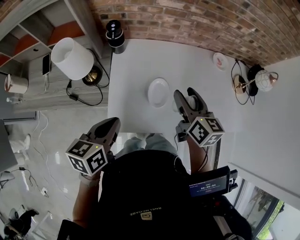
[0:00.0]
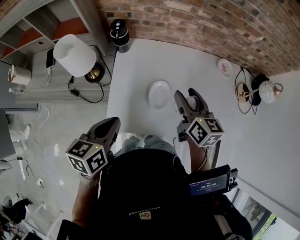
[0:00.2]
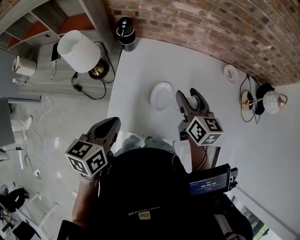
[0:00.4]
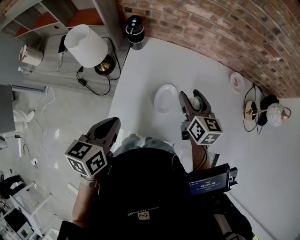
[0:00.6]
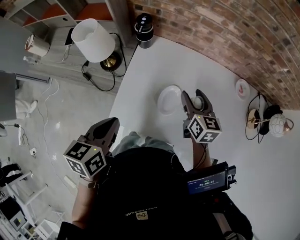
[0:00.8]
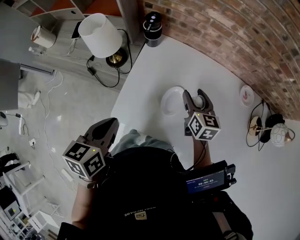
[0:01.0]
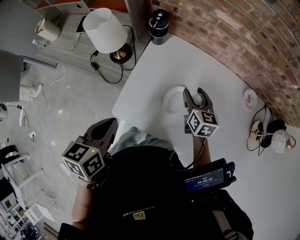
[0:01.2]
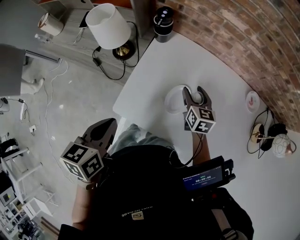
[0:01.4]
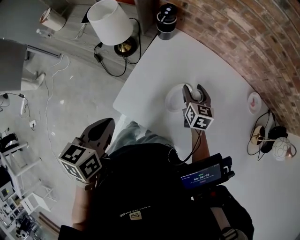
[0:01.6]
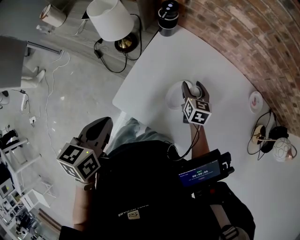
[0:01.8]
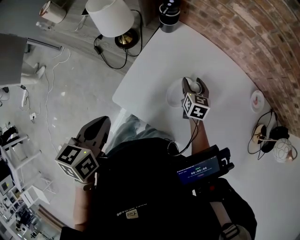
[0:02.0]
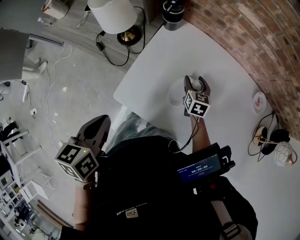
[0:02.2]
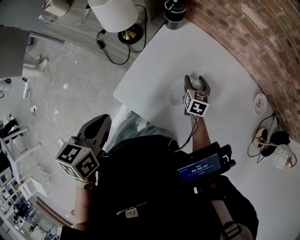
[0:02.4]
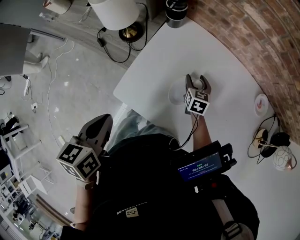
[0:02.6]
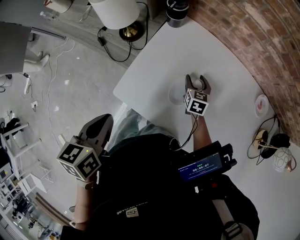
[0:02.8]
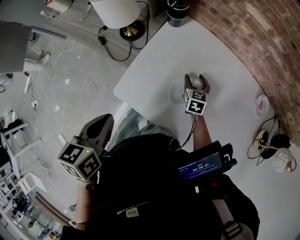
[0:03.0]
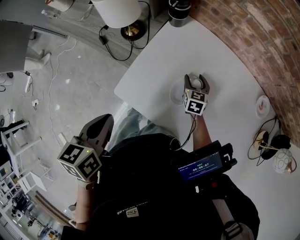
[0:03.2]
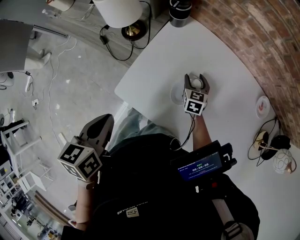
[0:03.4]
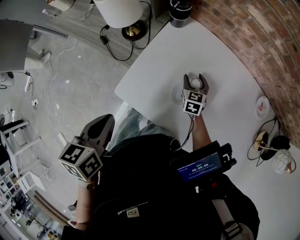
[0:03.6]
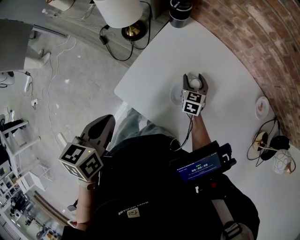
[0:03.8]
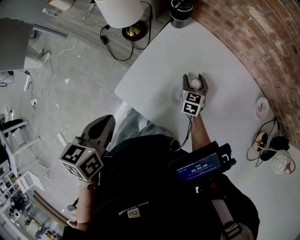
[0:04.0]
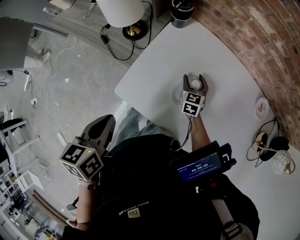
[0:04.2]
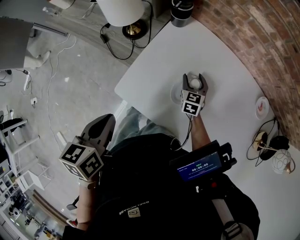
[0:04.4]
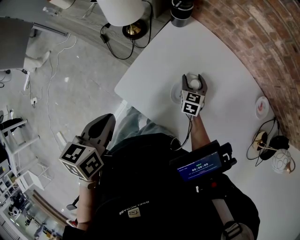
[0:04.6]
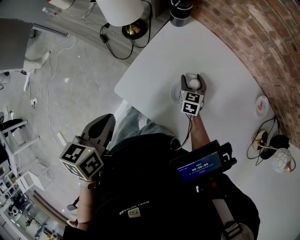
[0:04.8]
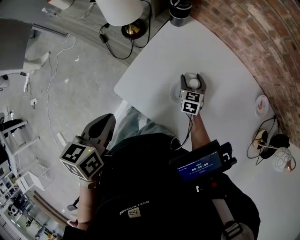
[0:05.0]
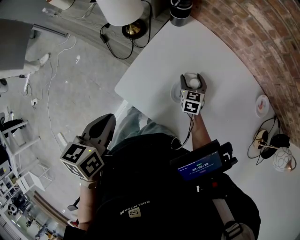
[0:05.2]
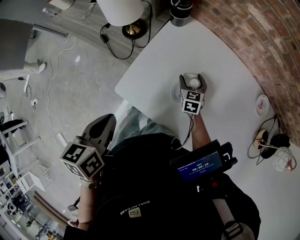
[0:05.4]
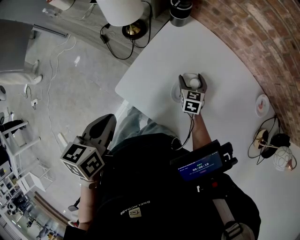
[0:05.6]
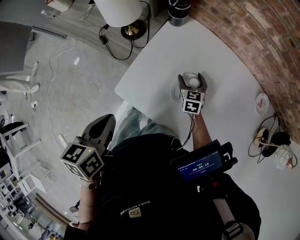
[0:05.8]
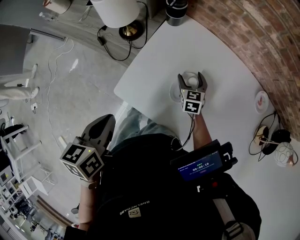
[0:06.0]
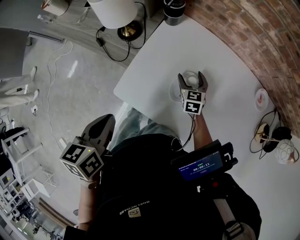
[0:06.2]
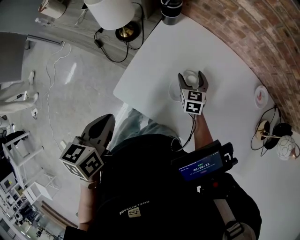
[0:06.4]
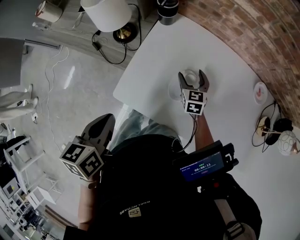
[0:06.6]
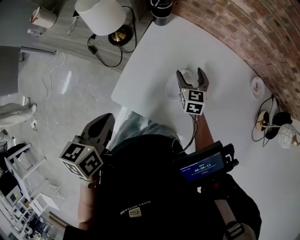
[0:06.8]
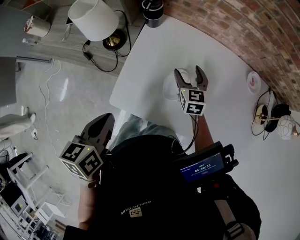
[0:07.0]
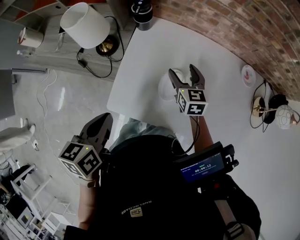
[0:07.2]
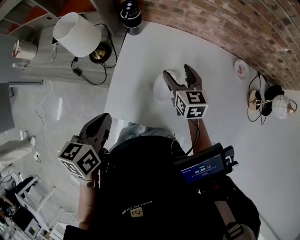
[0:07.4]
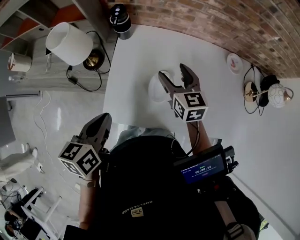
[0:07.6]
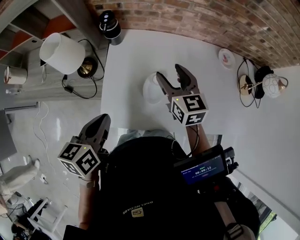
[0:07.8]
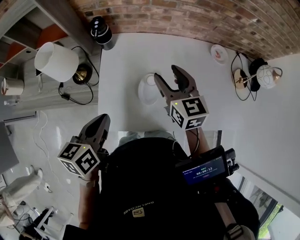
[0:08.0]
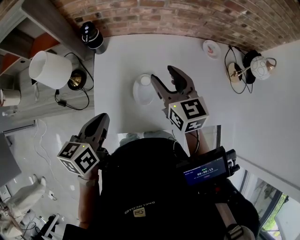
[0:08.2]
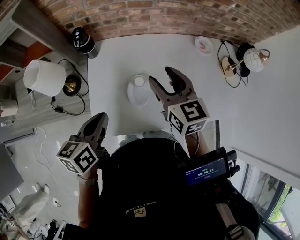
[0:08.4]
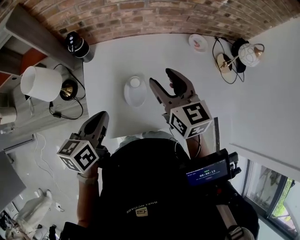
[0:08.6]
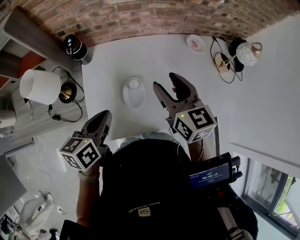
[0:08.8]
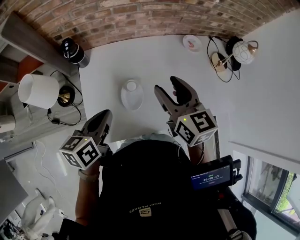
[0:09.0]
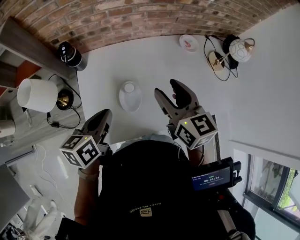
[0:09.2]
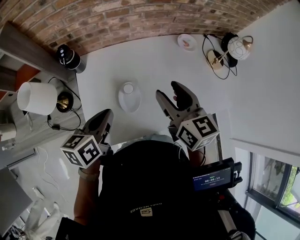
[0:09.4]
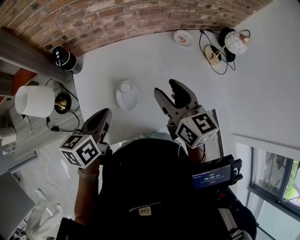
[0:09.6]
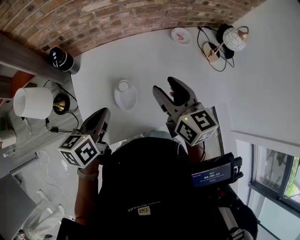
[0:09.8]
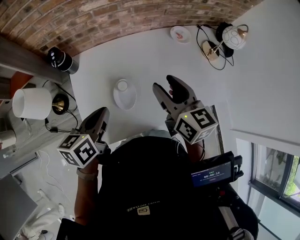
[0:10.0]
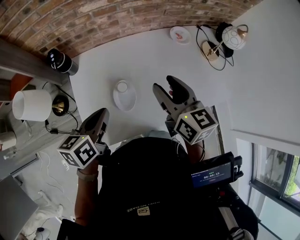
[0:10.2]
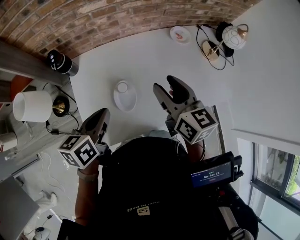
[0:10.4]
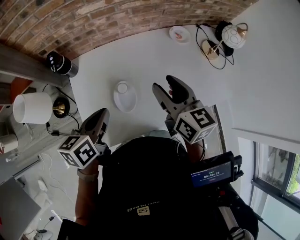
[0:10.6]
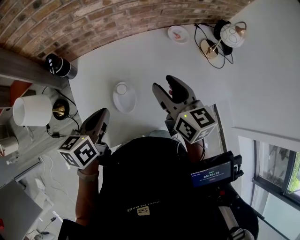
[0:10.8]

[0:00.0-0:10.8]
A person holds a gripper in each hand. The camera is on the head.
0:00.0 to 0:01.6: The right gripper shifts about 20 cm downward and forward, and turns by roughly 30 degrees, while the left gripper rotates roughly 30 degrees.
0:01.6 to 0:03.0: The right gripper heads downward, covering roughly 10 cm.
0:03.0 to 0:06.2: There are only small adjustments of the grippers.
0:06.2 to 0:07.8: The left gripper is displaced forward by roughly 10 cm, and turns by about 30 degrees. The right gripper is displaced upward by roughly 20 cm, and swivels some 20 degrees.
0:07.8 to 0:09.2: The right gripper goes approximately 15 cm to the right, upward and backward, while the left gripper shifts about 10 cm to the right and forward.
0:09.2 to 0:10.8: There are only small adjustments of the grippers.

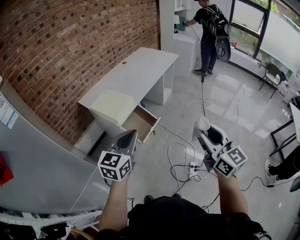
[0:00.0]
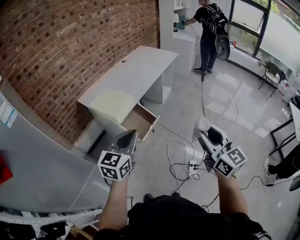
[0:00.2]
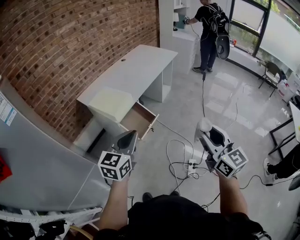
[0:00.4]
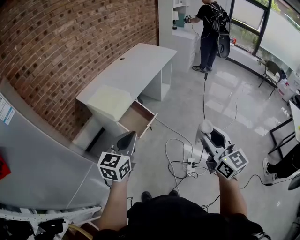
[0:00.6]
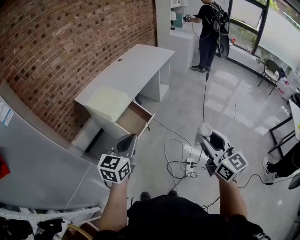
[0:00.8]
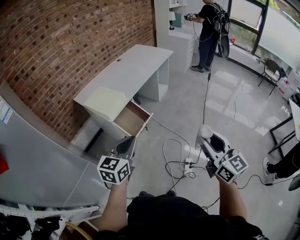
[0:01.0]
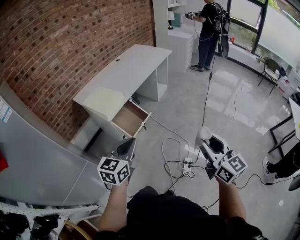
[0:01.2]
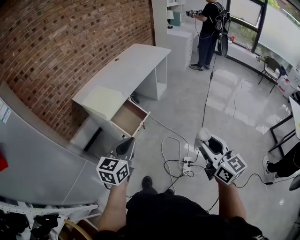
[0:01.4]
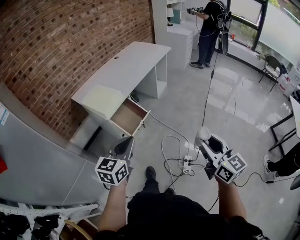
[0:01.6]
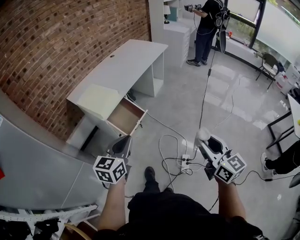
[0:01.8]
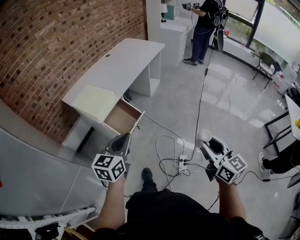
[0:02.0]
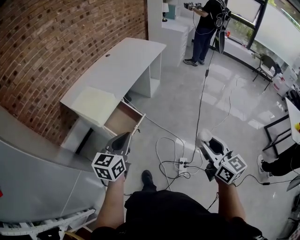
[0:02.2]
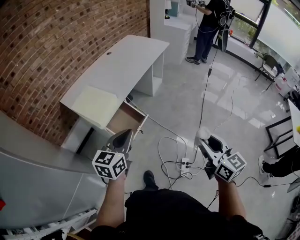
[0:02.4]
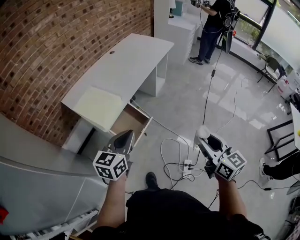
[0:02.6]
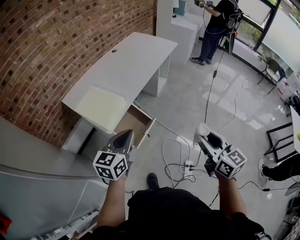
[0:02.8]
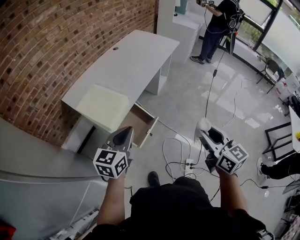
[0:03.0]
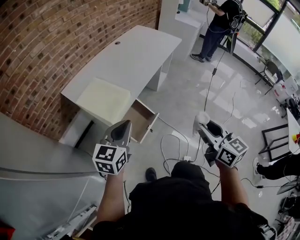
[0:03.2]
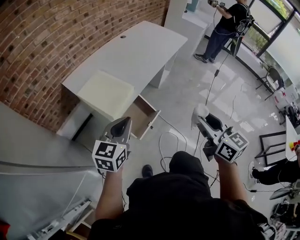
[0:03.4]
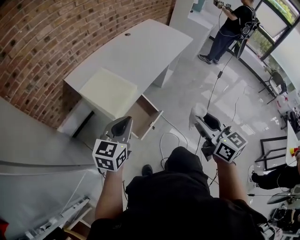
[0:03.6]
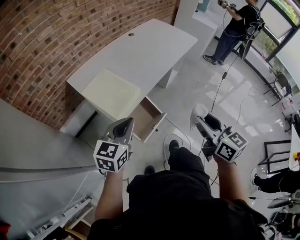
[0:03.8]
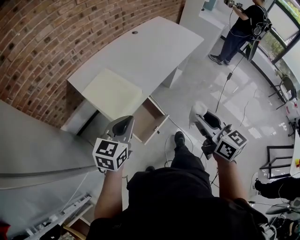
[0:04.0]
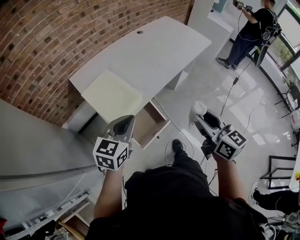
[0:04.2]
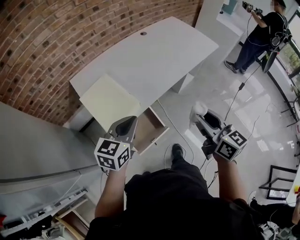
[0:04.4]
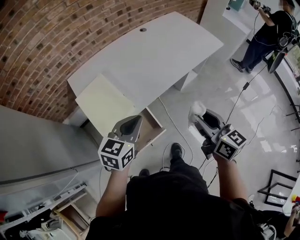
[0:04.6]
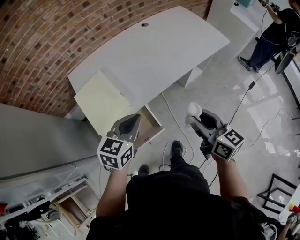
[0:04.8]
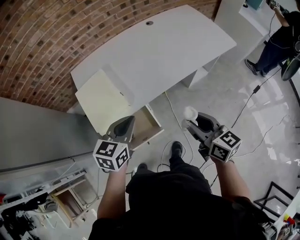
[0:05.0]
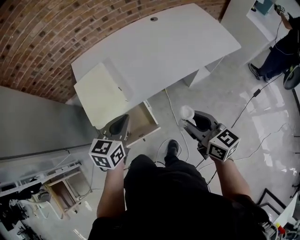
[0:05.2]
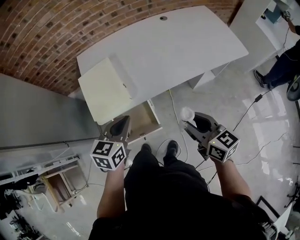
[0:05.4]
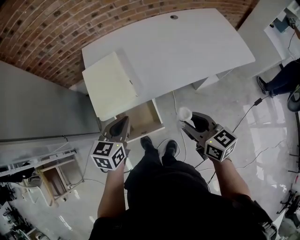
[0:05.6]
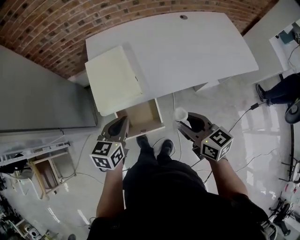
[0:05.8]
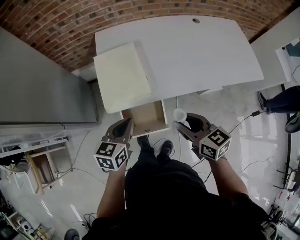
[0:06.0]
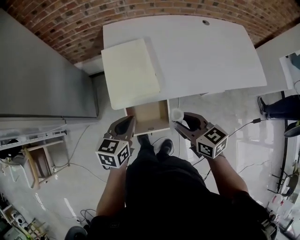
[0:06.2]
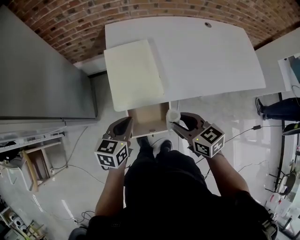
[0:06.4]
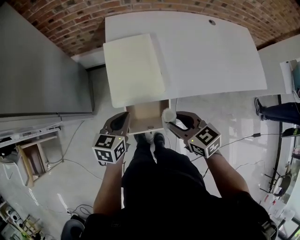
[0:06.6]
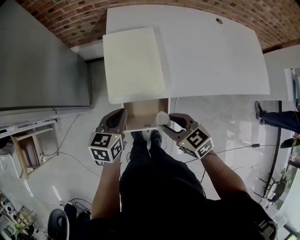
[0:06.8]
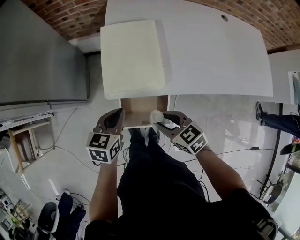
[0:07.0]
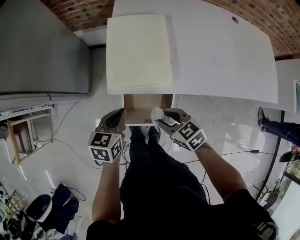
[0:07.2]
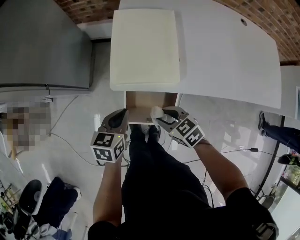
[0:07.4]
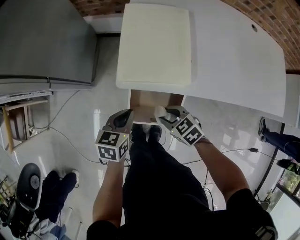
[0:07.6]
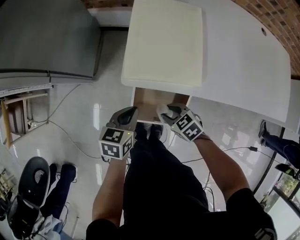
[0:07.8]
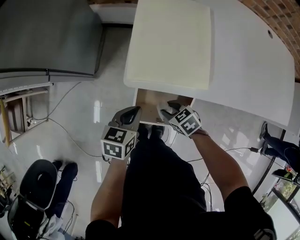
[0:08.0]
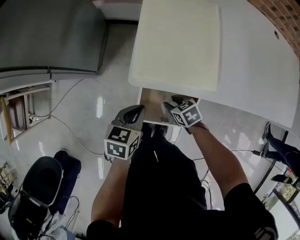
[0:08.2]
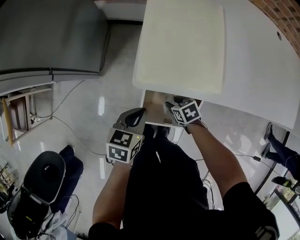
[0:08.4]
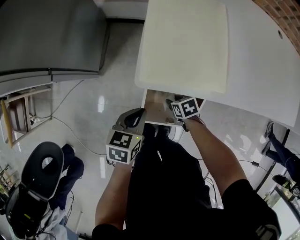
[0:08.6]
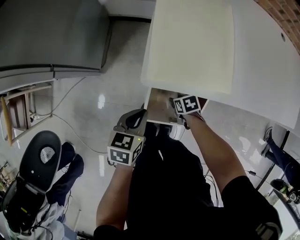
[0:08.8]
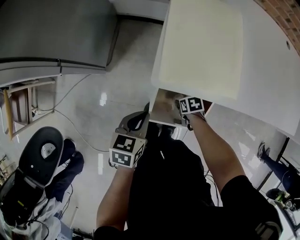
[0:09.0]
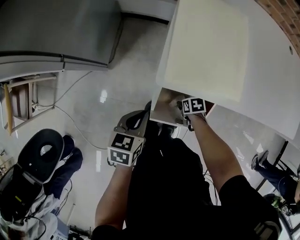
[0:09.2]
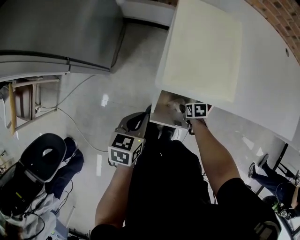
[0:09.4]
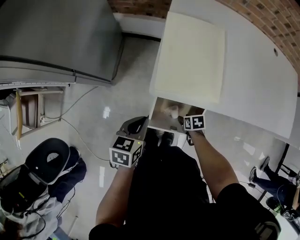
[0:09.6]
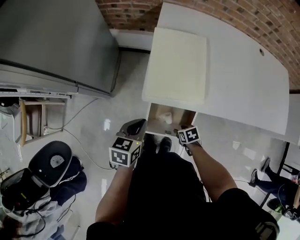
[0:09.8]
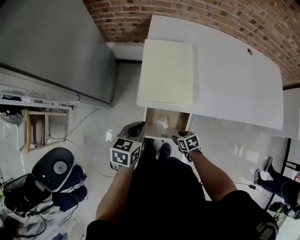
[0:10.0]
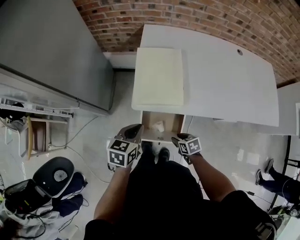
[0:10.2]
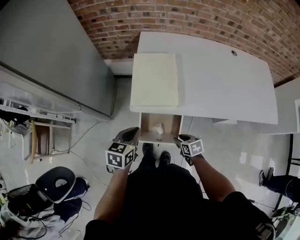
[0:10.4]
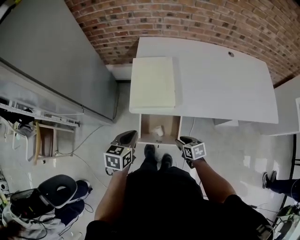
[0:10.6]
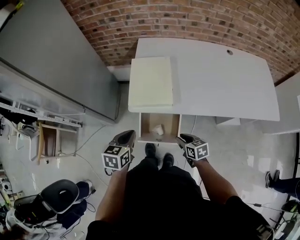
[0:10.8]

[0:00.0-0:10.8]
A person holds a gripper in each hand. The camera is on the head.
0:00.0 to 0:01.6: The grippers both shift to the right and downward by approximately 10 cm.
0:01.6 to 0:03.0: Both grippers move forward and to the left, some 25 cm.
0:03.0 to 0:04.6: The right gripper goes roughly 30 cm forward, and rotates about 30 degrees, while the left gripper is displaced forward by roughly 20 cm.
0:04.6 to 0:06.2: The right gripper ends up roughly 20 cm from where it was, and changes its angle by about 50 degrees; the left gripper ends up roughly 15 cm from where it was, and swivels approximately 40 degrees.
0:06.2 to 0:07.8: The two grippers go about 25 cm downward. The right gripper swivels some 50 degrees.
0:07.8 to 0:09.2: The right gripper goes roughly 20 cm downward, and turns by roughly 40 degrees; the left gripper goes about 5 cm to the left.
0:09.2 to 0:10.8: The two grippers go about 25 cm upward. The right gripper points its fingers roughly 30 degrees further upward.

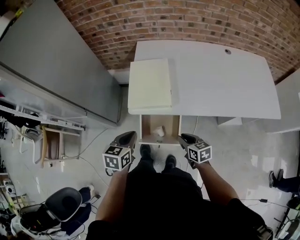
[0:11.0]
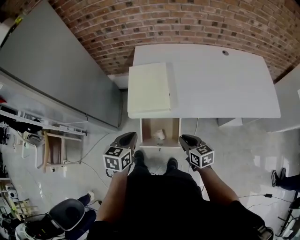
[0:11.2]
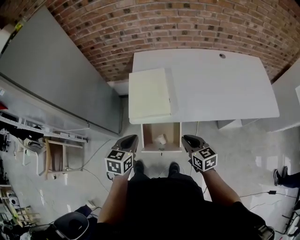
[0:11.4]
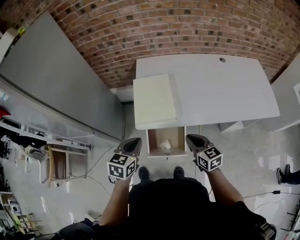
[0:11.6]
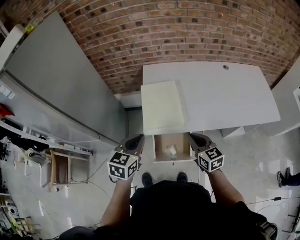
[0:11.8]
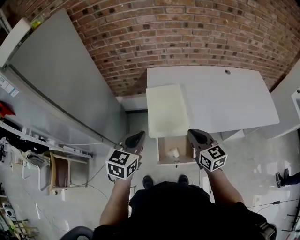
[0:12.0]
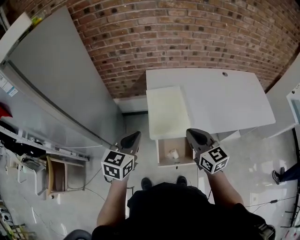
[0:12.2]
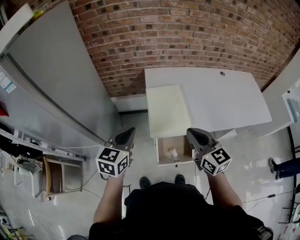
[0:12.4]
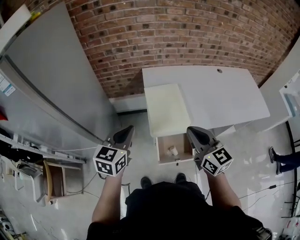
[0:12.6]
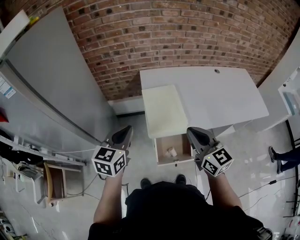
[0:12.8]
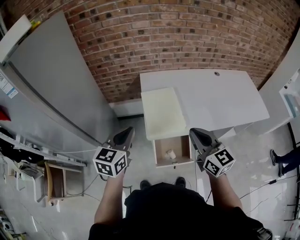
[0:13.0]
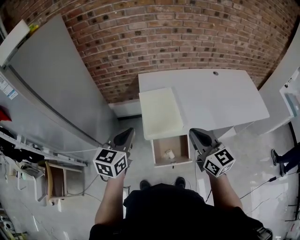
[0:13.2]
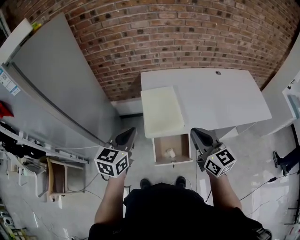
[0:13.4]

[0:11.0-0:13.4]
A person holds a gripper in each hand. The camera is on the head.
0:11.0 to 0:12.2: The right gripper moves upward and to the left, some 25 cm, and changes its angle by roughly 30 degrees. Meanwhile the left gripper moves upward, to the left and forward, approximately 20 cm, and turns by about 20 degrees.
0:12.2 to 0:13.4: The right gripper goes some 10 cm upward and to the right.
